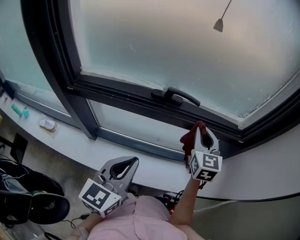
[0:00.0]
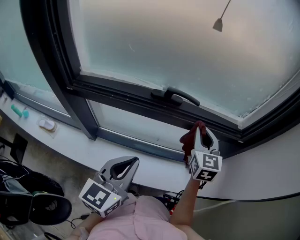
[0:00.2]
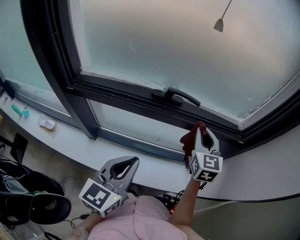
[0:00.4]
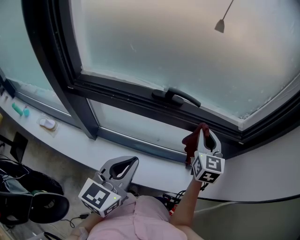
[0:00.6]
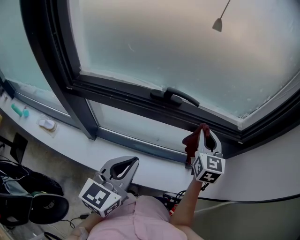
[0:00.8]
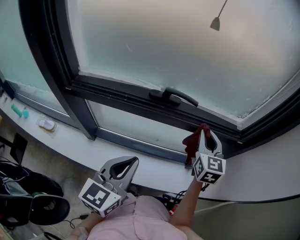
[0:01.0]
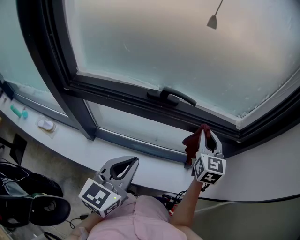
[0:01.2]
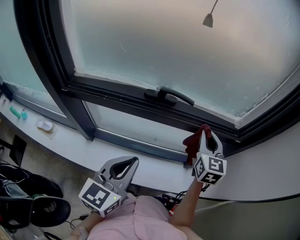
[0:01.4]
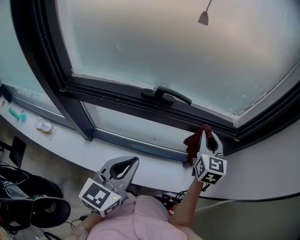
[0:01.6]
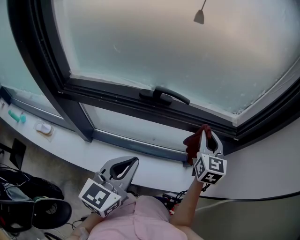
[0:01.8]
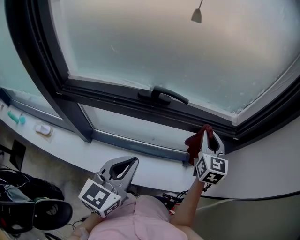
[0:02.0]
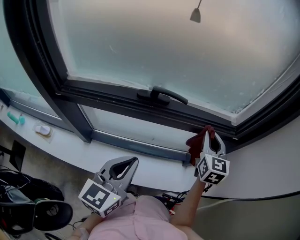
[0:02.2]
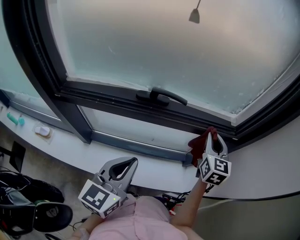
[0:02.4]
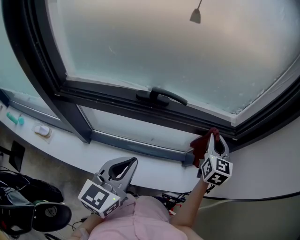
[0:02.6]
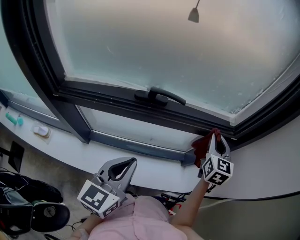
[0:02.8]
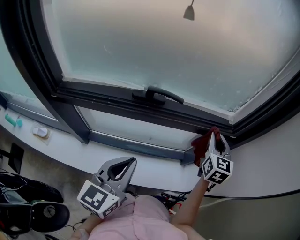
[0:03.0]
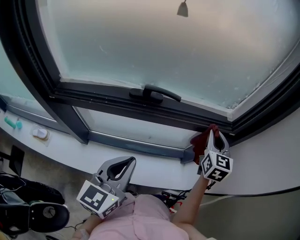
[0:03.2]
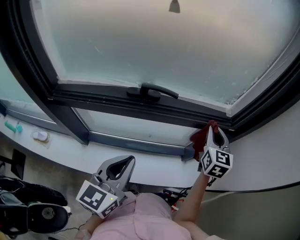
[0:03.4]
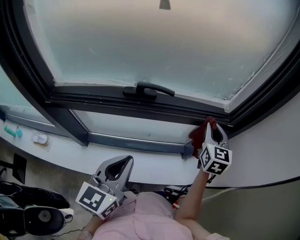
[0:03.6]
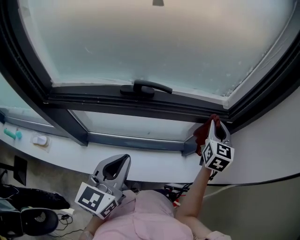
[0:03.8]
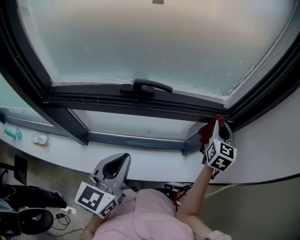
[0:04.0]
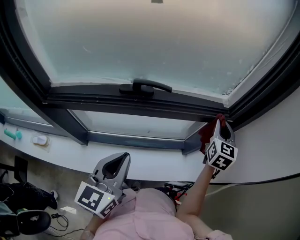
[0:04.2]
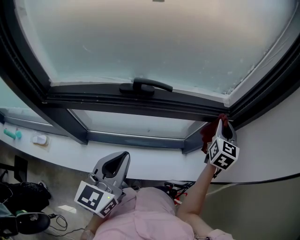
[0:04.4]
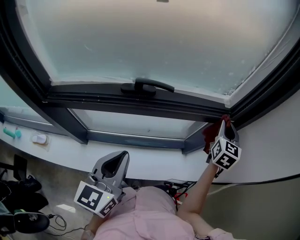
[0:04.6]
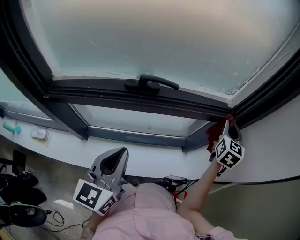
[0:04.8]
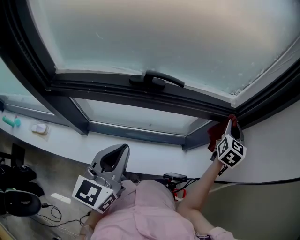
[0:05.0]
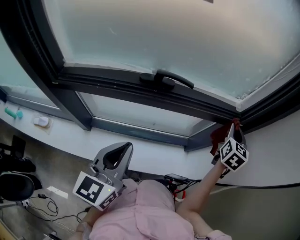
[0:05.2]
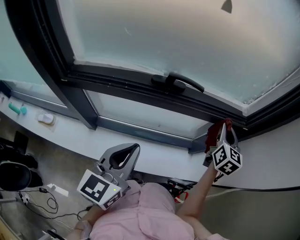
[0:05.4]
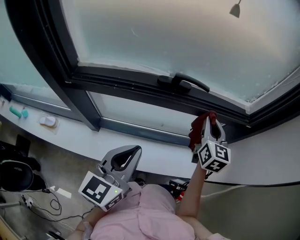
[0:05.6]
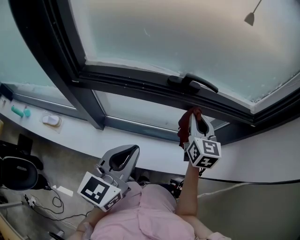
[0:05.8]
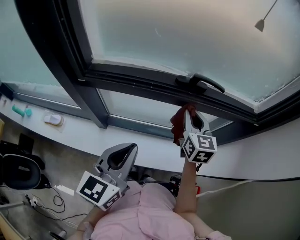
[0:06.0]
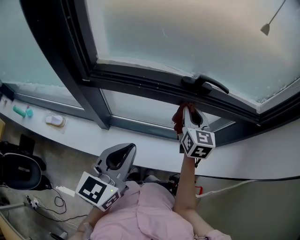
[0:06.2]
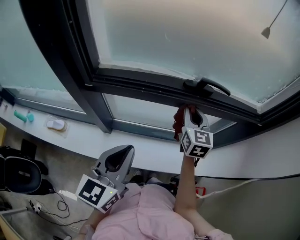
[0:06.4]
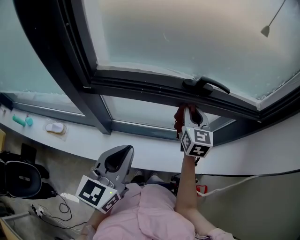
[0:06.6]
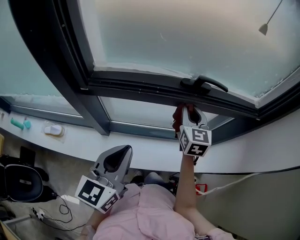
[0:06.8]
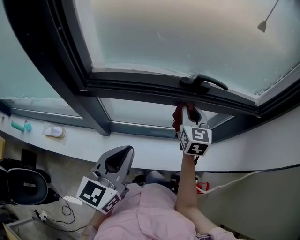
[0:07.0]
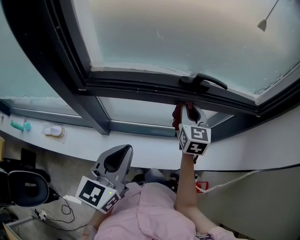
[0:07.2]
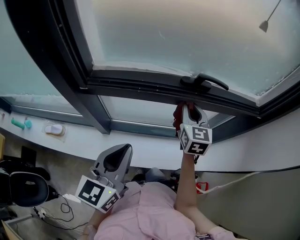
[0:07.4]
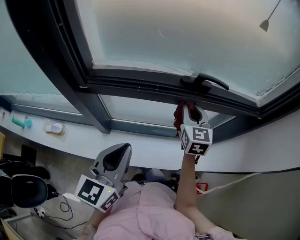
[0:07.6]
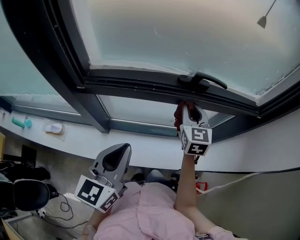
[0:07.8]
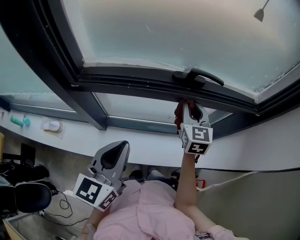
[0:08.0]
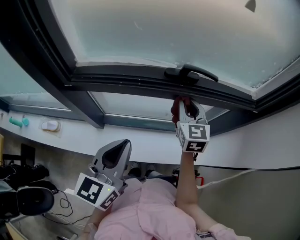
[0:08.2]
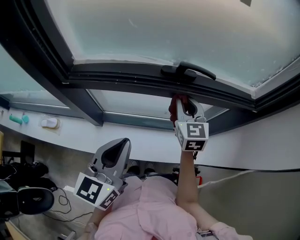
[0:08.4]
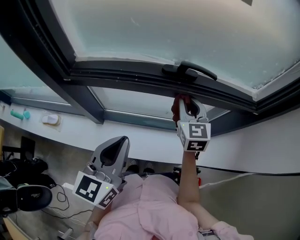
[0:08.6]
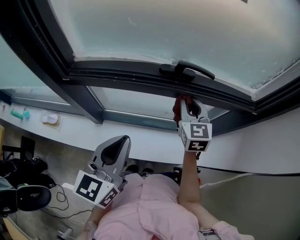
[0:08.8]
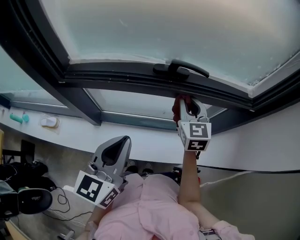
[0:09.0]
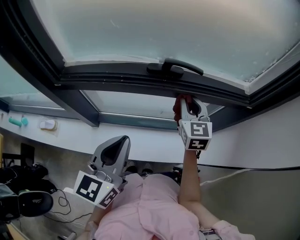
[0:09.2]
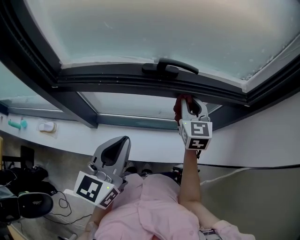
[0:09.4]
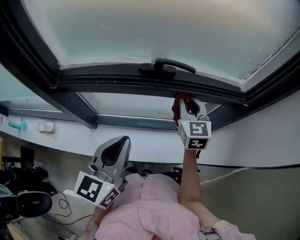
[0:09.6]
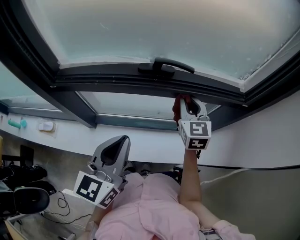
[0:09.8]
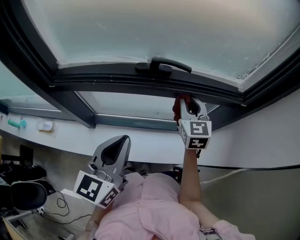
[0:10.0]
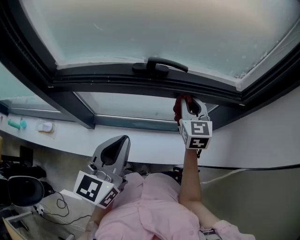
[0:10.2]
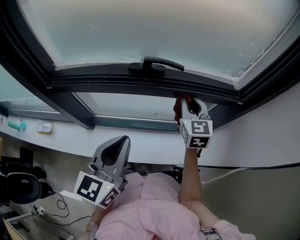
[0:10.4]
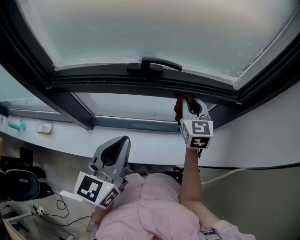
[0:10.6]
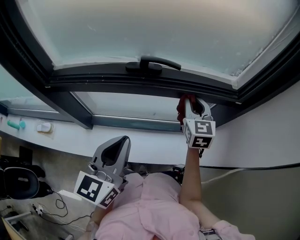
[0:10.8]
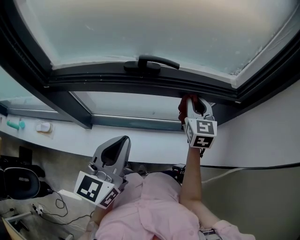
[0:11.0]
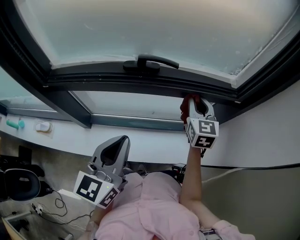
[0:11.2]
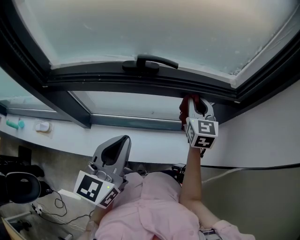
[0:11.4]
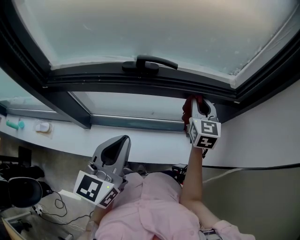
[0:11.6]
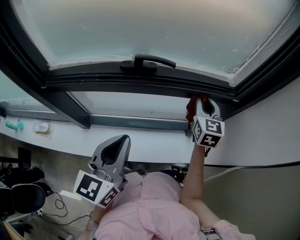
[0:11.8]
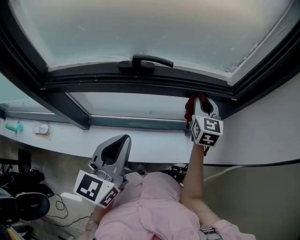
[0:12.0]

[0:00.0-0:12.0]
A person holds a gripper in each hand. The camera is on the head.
0:00.0 to 0:01.6: The right gripper is displaced to the right by roughly 5 cm.
0:01.6 to 0:03.0: The right gripper moves to the right, about 5 cm.
0:03.0 to 0:04.4: The right gripper heads to the right, covering some 5 cm.
0:04.4 to 0:06.0: The right gripper moves to the left, some 30 cm, and changes its angle by approximately 30 degrees. Meanwhile the left gripper shifts about 15 cm to the left and backward.
0:06.0 to 0:07.6: The left gripper shifts approximately 5 cm to the left.
0:07.6 to 0:09.0: Both grippers travel together to the right, roughly 10 cm.
0:09.0 to 0:10.4: The grippers both shift to the right by some 10 cm.
0:10.4 to 0:12.0: The right gripper goes approximately 10 cm to the right.

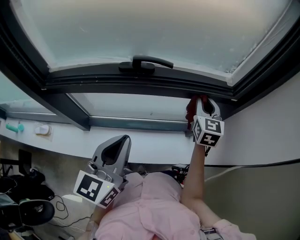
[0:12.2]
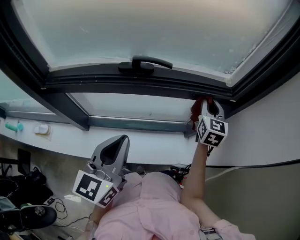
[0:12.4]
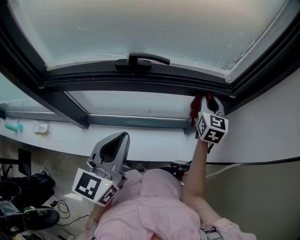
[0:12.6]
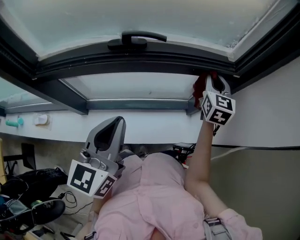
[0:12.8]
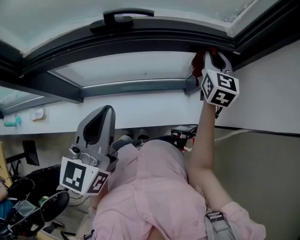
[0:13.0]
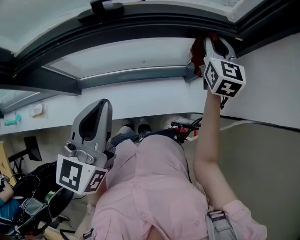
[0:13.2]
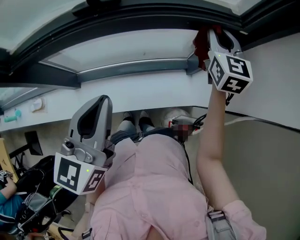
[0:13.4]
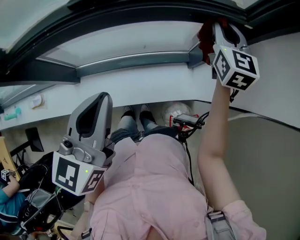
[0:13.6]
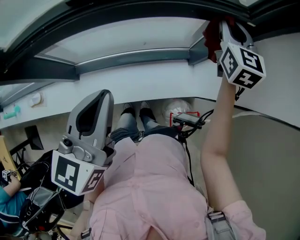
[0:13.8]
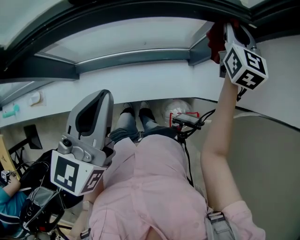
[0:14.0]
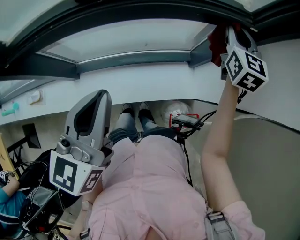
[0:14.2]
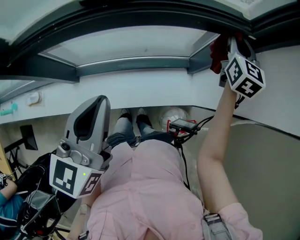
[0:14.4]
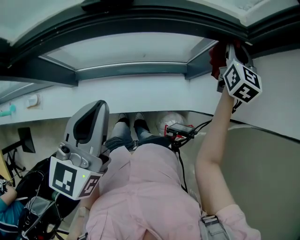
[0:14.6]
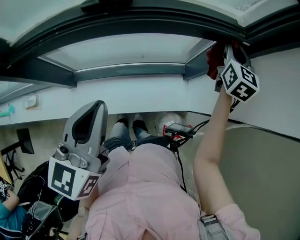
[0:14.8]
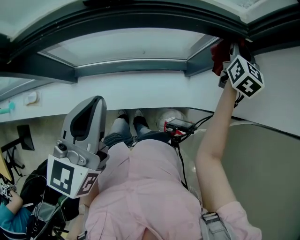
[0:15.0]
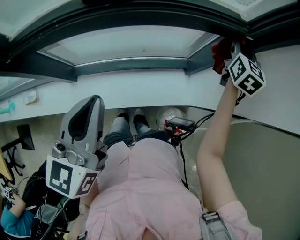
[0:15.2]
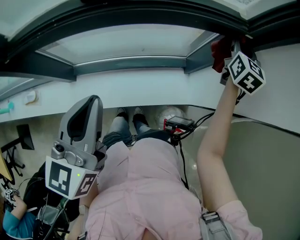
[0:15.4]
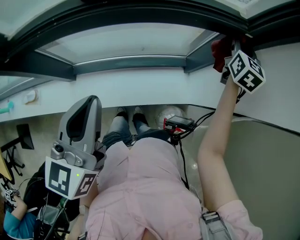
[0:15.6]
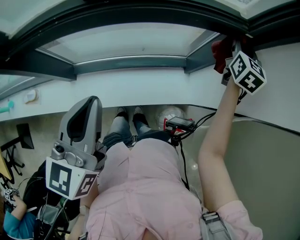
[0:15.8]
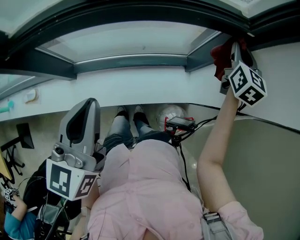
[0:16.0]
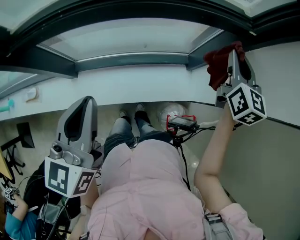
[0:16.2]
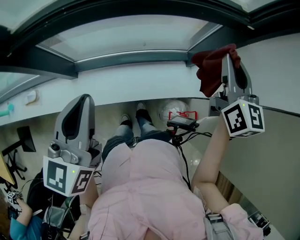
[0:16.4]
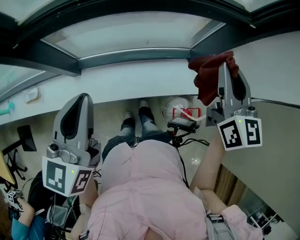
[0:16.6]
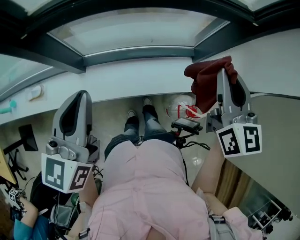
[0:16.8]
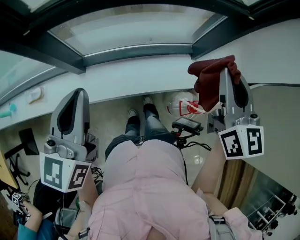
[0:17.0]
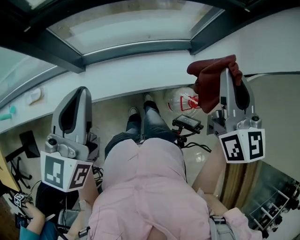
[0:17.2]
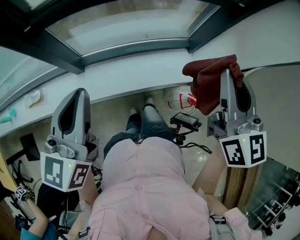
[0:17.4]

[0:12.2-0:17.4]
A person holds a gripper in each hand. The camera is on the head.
0:12.2 to 0:14.0: The right gripper moves to the right, some 10 cm.
0:14.0 to 0:15.6: The right gripper is displaced to the right by approximately 5 cm.
0:15.6 to 0:17.4: The right gripper travels backward and to the left by approximately 40 cm, and swivels about 20 degrees; the left gripper heads backward and to the left, covering roughly 20 cm.

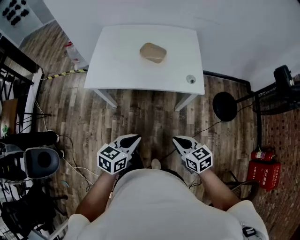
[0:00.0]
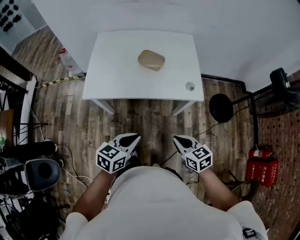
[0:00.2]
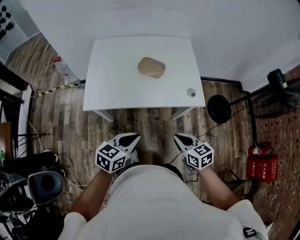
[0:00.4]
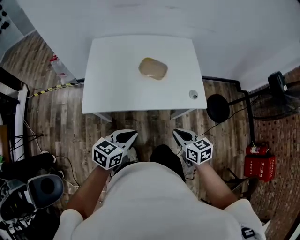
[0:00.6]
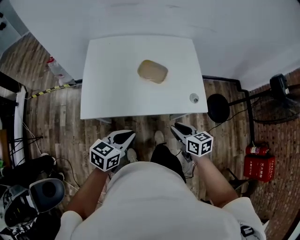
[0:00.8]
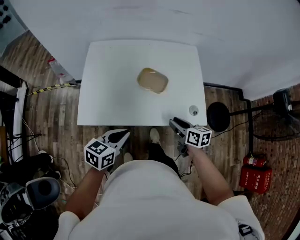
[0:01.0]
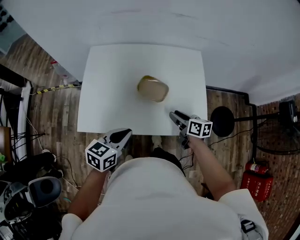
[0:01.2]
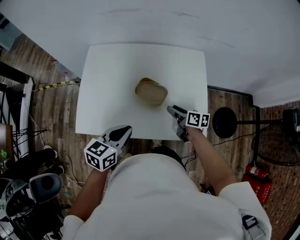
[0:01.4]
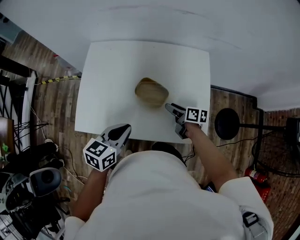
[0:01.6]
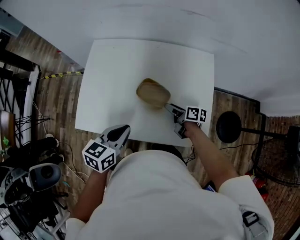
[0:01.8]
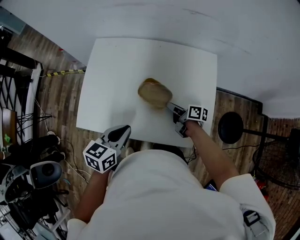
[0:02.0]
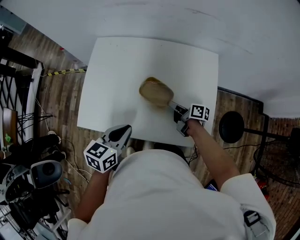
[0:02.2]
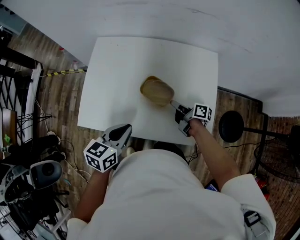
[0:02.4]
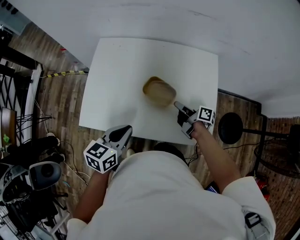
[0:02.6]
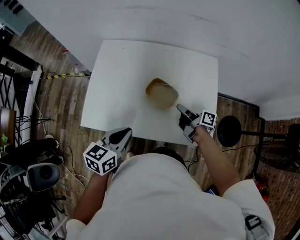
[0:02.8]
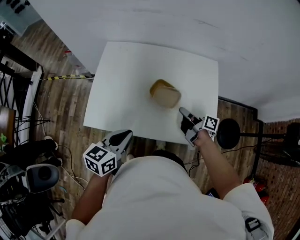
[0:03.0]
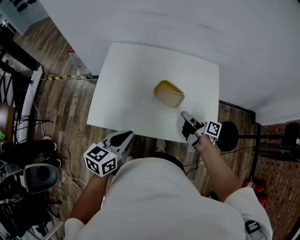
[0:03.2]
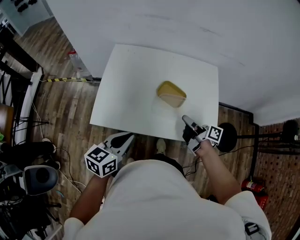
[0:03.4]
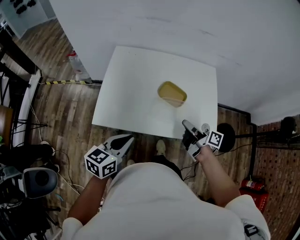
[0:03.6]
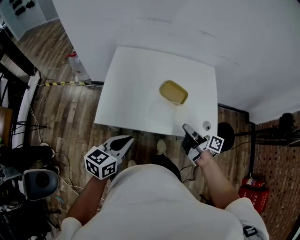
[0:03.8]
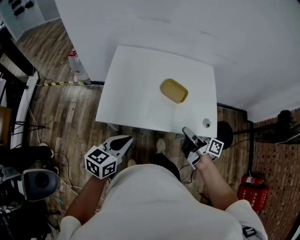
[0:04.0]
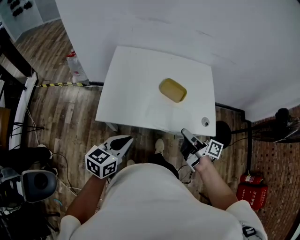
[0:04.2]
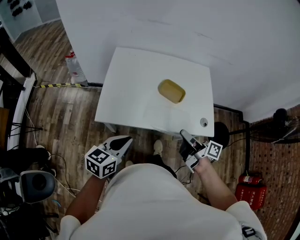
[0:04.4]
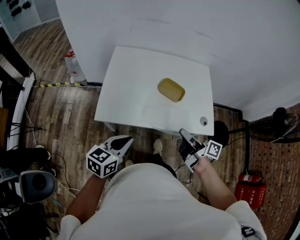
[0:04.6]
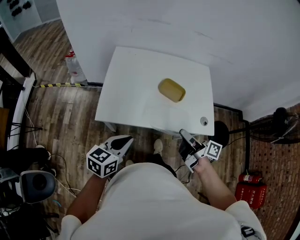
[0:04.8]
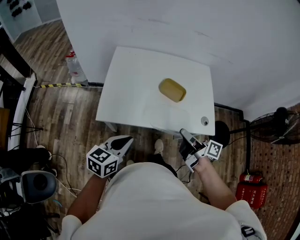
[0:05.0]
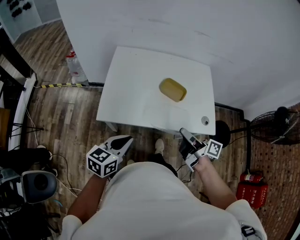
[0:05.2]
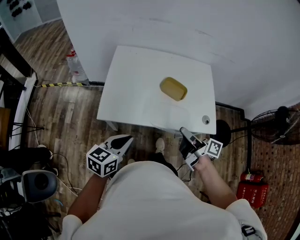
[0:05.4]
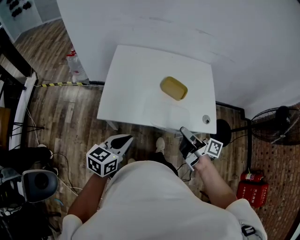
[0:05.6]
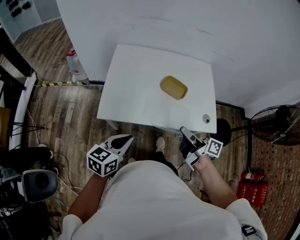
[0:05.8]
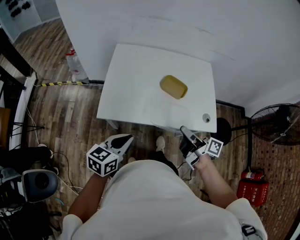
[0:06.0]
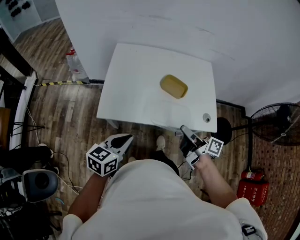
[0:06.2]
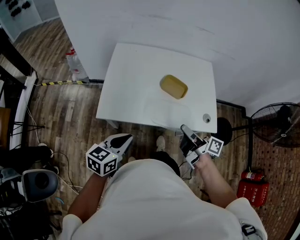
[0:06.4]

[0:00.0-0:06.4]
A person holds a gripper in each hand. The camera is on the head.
0:00.0 to 0:01.6: Both grippers move forward, about 40 cm. The right gripper twists approximately 40 degrees clockwise, seen from behind, and opens up.
0:01.6 to 0:03.2: The left gripper shifts approximately 10 cm to the left and backward, while the right gripper goes some 10 cm upward and backward, changes its angle by approximately 20 degrees, and closes its fingers.
0:03.2 to 0:04.8: The left gripper is displaced backward and to the left by about 10 cm. The right gripper moves backward, upward and to the left, some 20 cm.
0:04.8 to 0:06.4: The grippers make only small movements.
